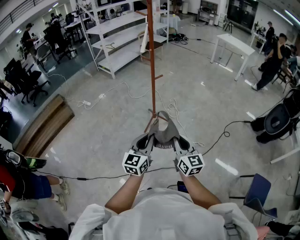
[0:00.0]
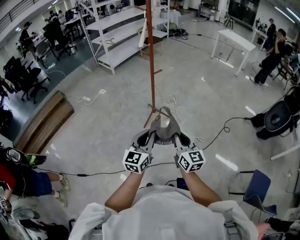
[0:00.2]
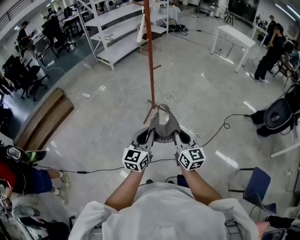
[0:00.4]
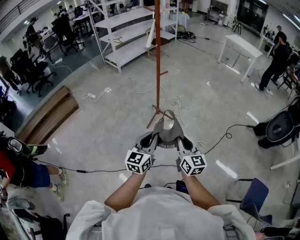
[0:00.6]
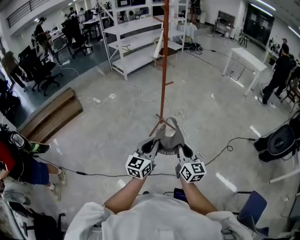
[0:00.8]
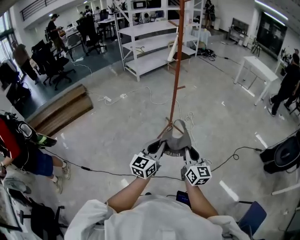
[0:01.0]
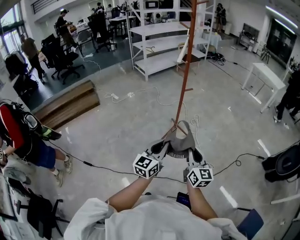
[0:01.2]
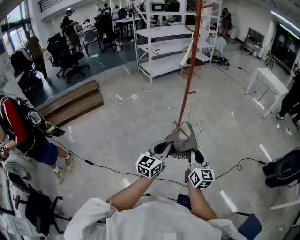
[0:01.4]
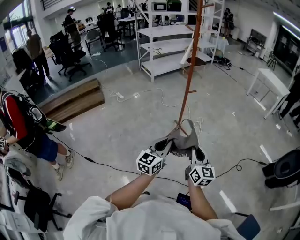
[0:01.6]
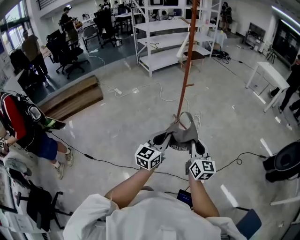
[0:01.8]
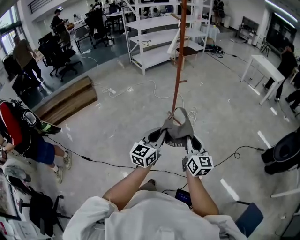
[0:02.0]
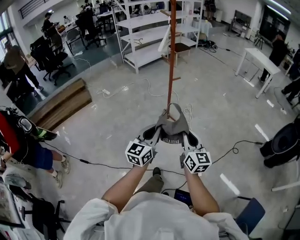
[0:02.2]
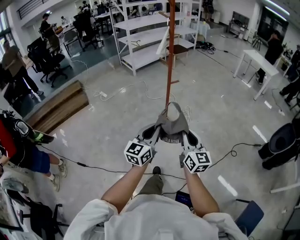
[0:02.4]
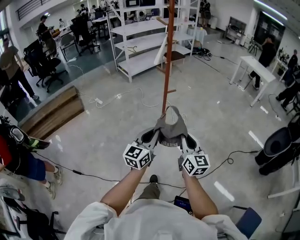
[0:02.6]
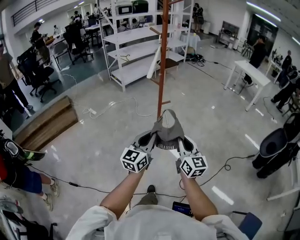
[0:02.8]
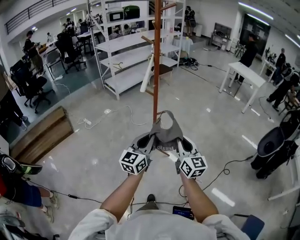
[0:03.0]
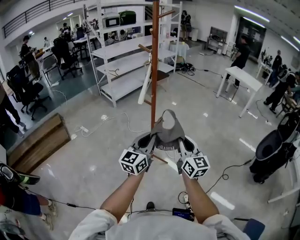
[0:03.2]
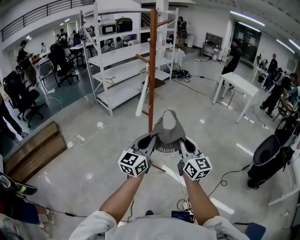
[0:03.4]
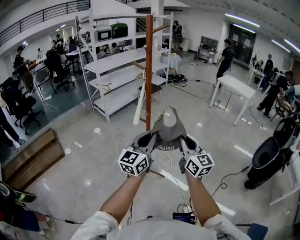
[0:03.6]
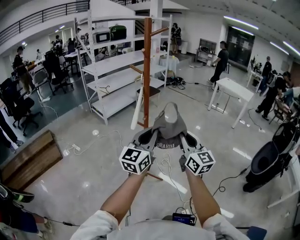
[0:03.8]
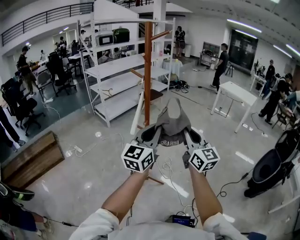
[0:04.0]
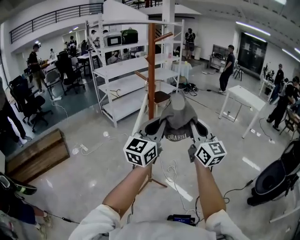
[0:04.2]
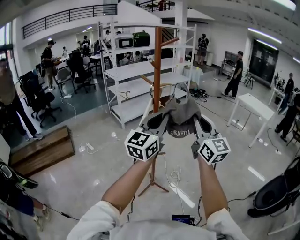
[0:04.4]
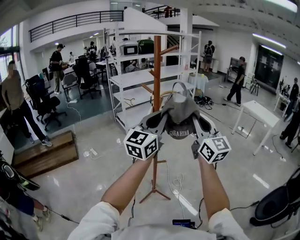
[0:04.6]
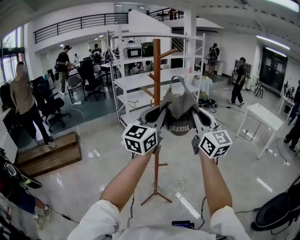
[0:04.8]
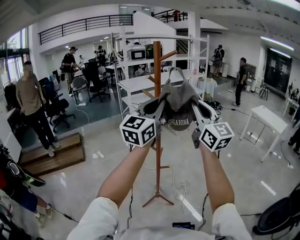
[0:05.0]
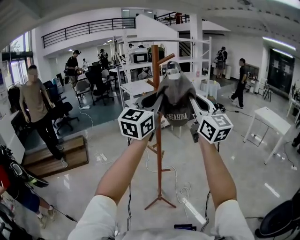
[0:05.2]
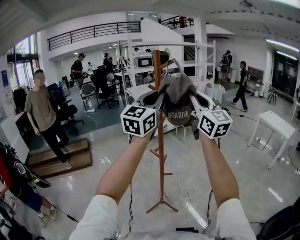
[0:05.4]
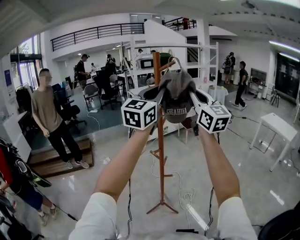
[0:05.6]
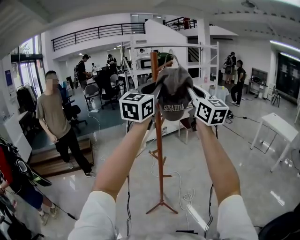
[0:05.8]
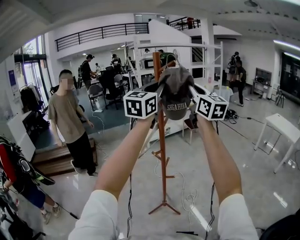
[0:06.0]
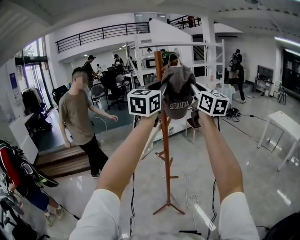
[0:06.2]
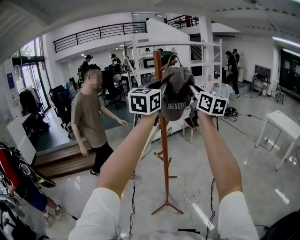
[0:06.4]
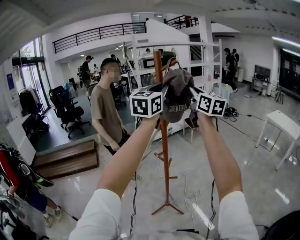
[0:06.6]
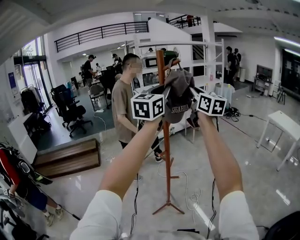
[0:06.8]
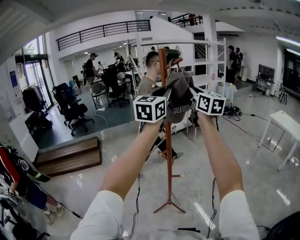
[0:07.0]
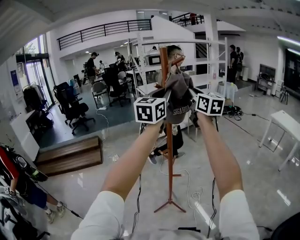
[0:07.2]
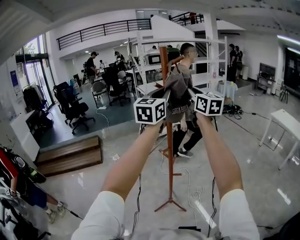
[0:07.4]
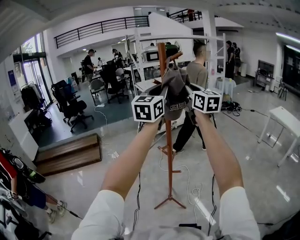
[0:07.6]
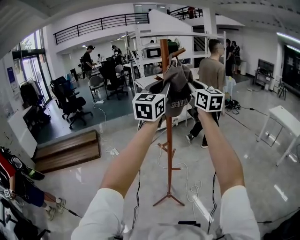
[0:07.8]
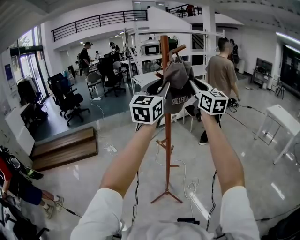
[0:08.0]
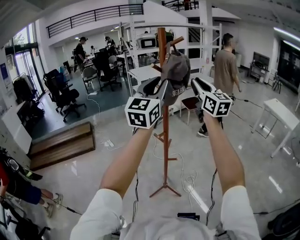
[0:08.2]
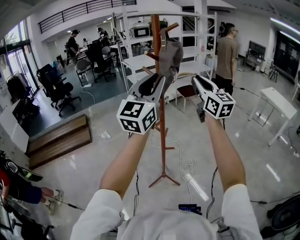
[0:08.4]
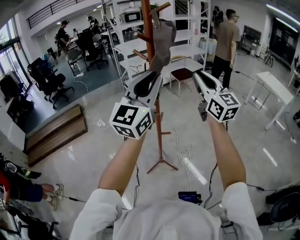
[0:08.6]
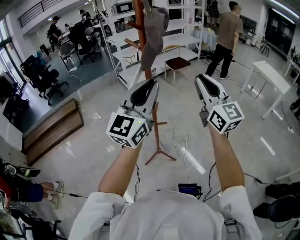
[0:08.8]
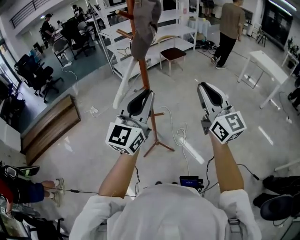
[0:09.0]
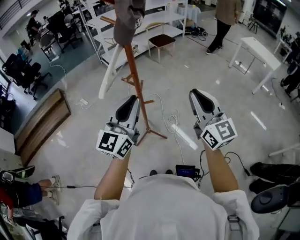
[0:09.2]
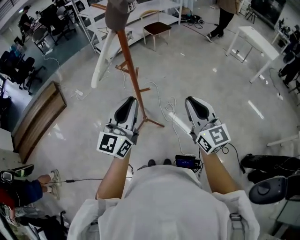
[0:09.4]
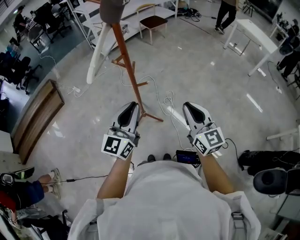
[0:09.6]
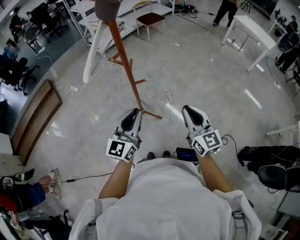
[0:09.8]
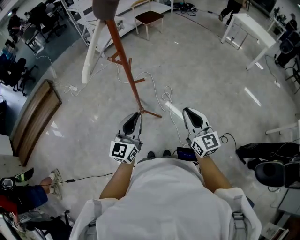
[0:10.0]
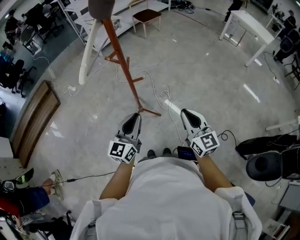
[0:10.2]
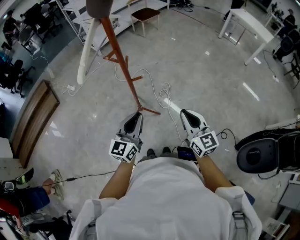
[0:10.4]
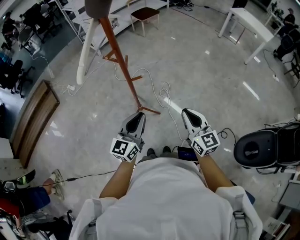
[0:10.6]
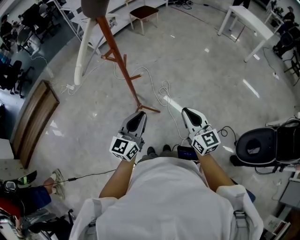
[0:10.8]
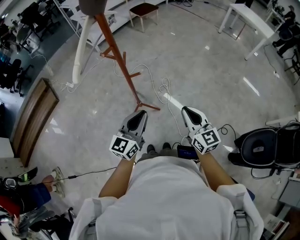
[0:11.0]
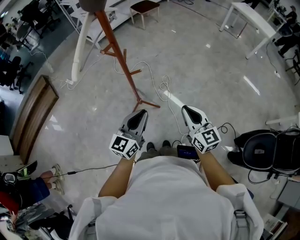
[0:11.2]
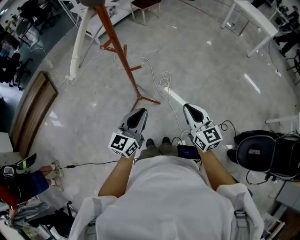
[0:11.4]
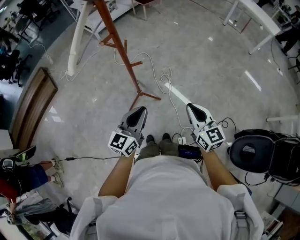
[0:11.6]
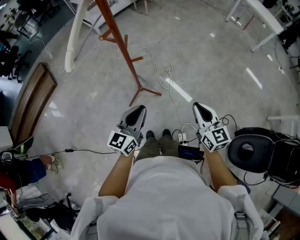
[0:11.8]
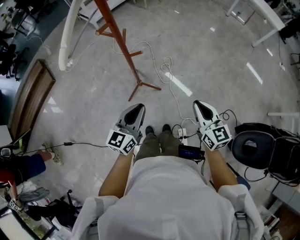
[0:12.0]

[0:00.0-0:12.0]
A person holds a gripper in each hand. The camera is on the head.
0:00.0 to 0:01.6: The grippers stay close to where they were, moving slightly.
0:01.6 to 0:03.0: Both grippers move forward, roughly 30 cm.
0:03.0 to 0:04.4: The grippers both shift upward and forward by approximately 35 cm. The right gripper changes its angle by roughly 20 degrees.
0:04.4 to 0:06.0: The left gripper shifts about 20 cm upward and forward, and rotates about 20 degrees, while the right gripper goes about 25 cm forward and upward.
0:06.0 to 0:07.6: The right gripper travels forward and downward by about 10 cm, while the left gripper ends up some 5 cm from where it was.
0:07.6 to 0:09.0: The left gripper travels downward and backward by approximately 25 cm; the right gripper heads backward, downward and to the right, covering about 30 cm.
0:09.0 to 0:10.4: The left gripper goes approximately 30 cm downward, and swivels approximately 20 degrees, while the right gripper shifts about 30 cm downward and backward, and changes its angle by roughly 20 degrees.
0:10.4 to 0:12.0: Both grippers travel together downward, roughly 5 cm.

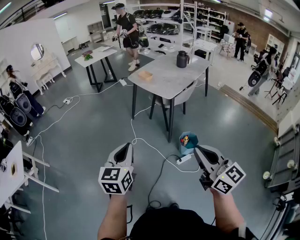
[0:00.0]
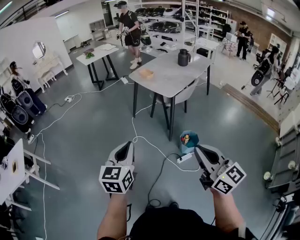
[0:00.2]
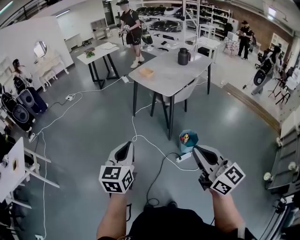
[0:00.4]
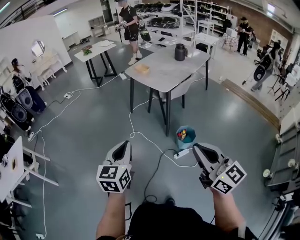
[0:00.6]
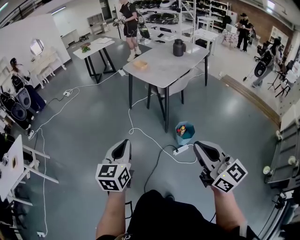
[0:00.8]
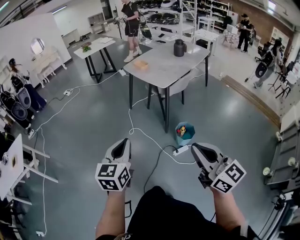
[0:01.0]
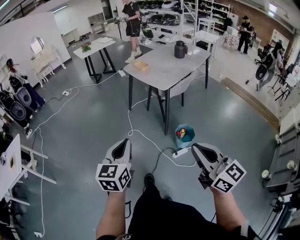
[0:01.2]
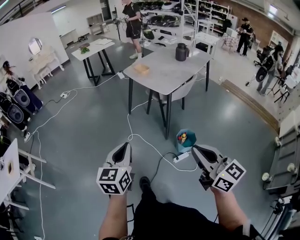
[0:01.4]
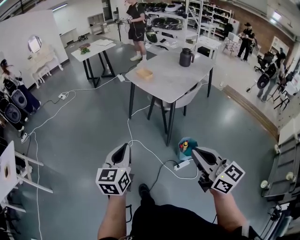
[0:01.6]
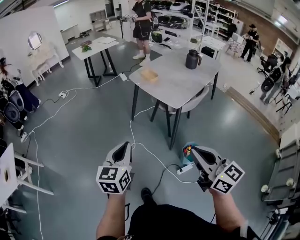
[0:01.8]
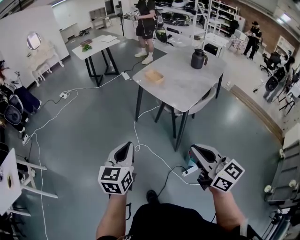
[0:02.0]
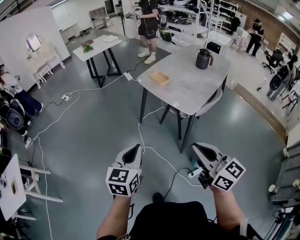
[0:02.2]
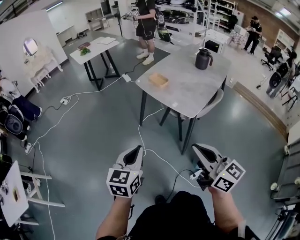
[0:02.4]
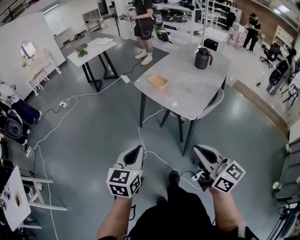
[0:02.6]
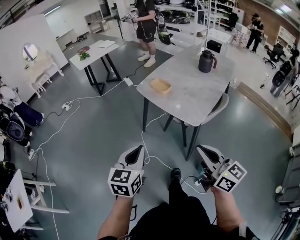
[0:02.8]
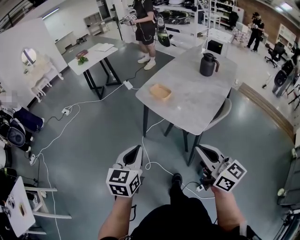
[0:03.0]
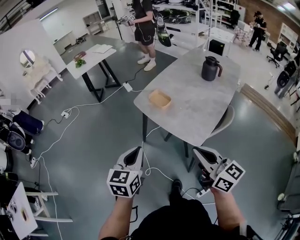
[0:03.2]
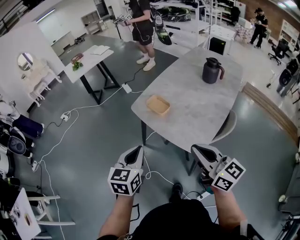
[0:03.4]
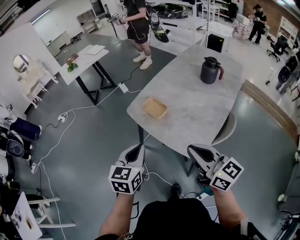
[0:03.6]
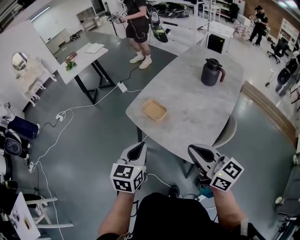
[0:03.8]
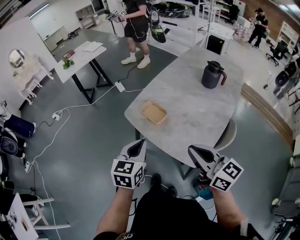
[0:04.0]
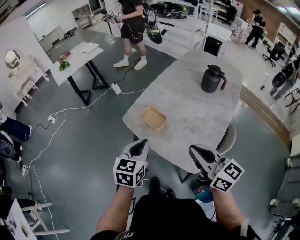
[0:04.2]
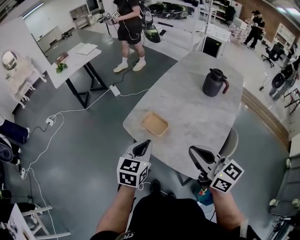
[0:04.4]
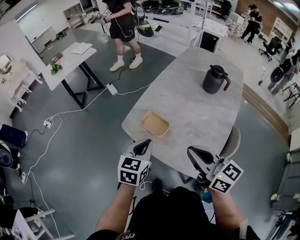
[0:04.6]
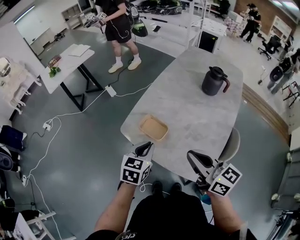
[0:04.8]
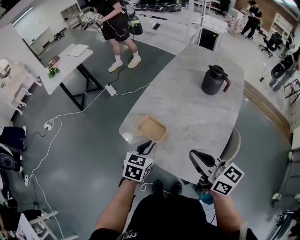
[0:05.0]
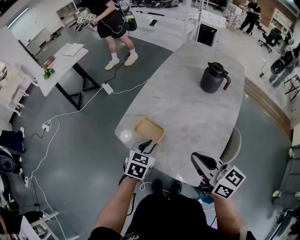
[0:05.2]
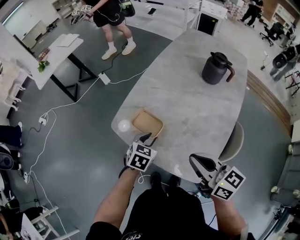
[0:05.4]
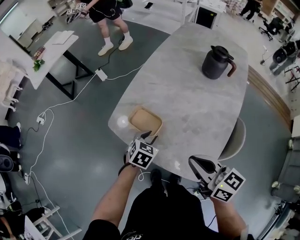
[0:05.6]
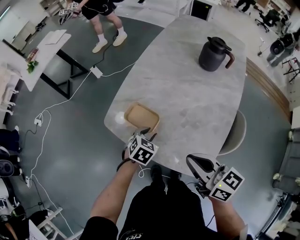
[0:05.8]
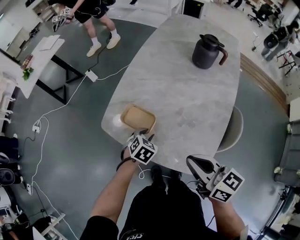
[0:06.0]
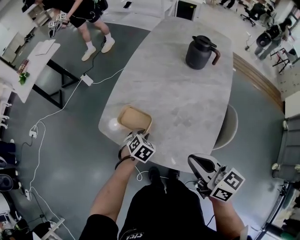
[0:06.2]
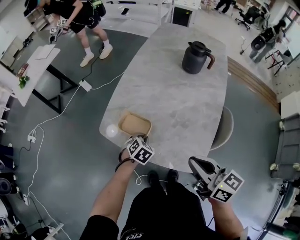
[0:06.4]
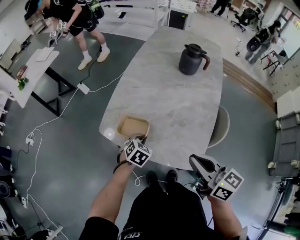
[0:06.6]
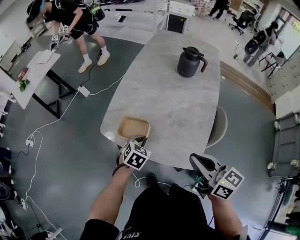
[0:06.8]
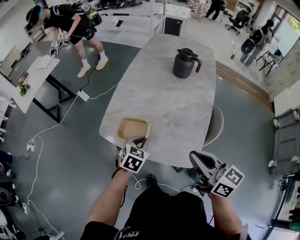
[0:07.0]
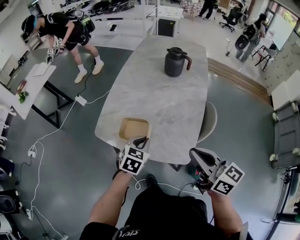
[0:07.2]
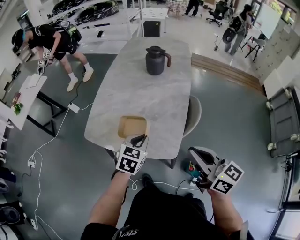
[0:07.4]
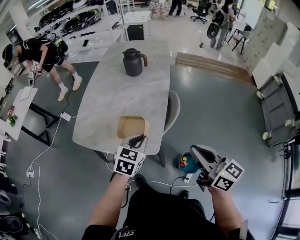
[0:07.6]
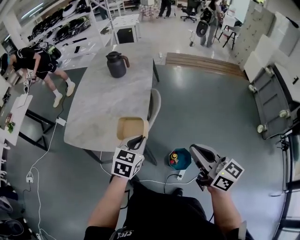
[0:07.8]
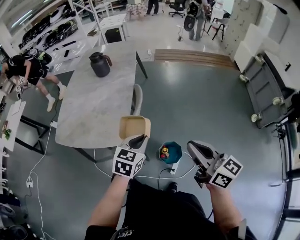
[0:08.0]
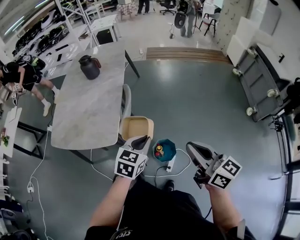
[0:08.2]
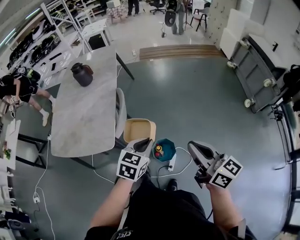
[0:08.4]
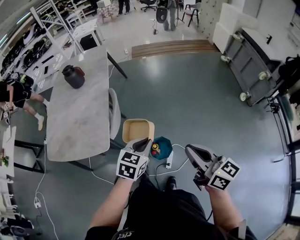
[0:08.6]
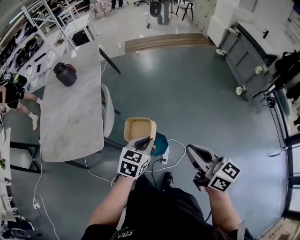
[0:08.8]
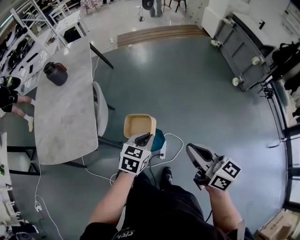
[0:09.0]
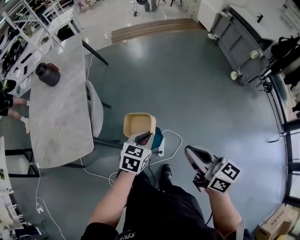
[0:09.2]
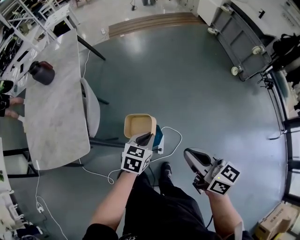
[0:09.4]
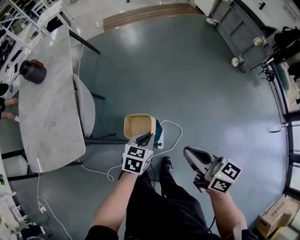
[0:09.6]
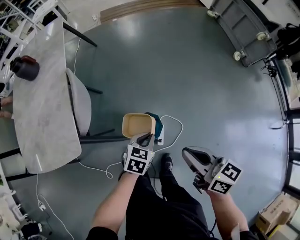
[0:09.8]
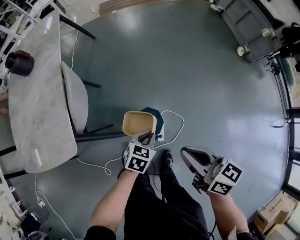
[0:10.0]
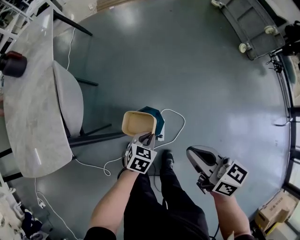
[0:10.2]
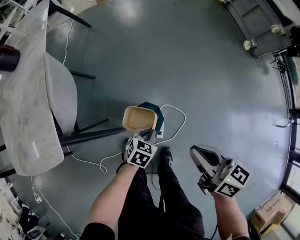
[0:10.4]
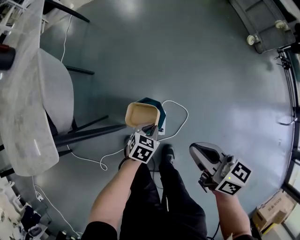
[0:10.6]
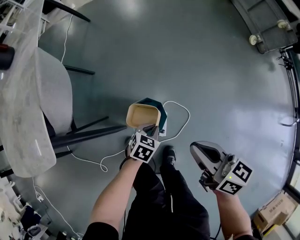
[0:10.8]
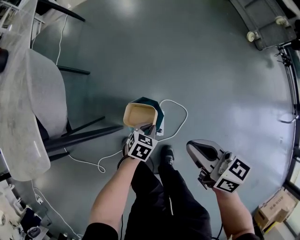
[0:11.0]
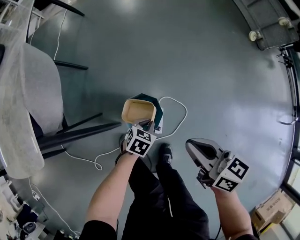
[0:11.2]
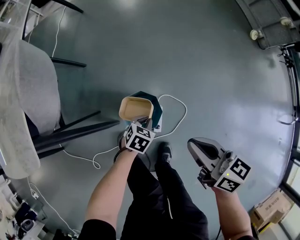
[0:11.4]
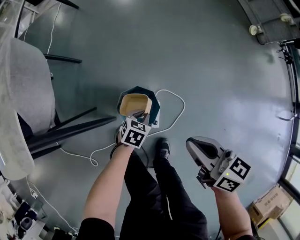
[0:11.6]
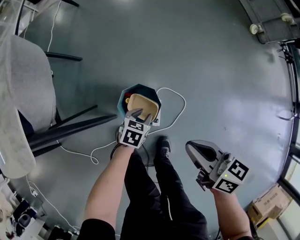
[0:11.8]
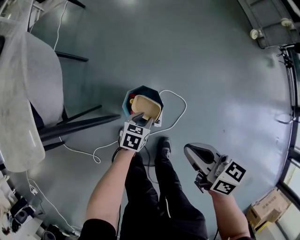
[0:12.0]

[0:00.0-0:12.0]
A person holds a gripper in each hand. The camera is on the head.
0:00.0 to 0:01.6: The two grippers go roughly 10 cm forward.
0:01.6 to 0:03.0: The two grippers go some 35 cm forward.
0:03.0 to 0:04.4: The two grippers go some 35 cm forward.
0:04.4 to 0:06.0: The left gripper moves downward and forward, approximately 25 cm, tips its fingers downward by approximately 30 degrees, and opens up; the right gripper travels downward by some 10 cm.
0:06.0 to 0:07.6: The left gripper travels to the right, upward and backward by about 35 cm, rotates approximately 30 degrees, and closes its fingers, while the right gripper travels to the right, backward and upward by roughly 30 cm, and changes its angle by about 30 degrees.
0:07.6 to 0:09.0: The right gripper ends up some 35 cm from where it was, and rotates approximately 20 degrees; the left gripper shifts by roughly 40 cm, and changes its angle by some 30 degrees.
0:09.0 to 0:10.4: Both grippers travel together downward, approximately 30 cm. The left gripper rotates about 20 degrees.
0:10.4 to 0:12.0: The two grippers go roughly 10 cm downward. The left gripper opens its fingers.
